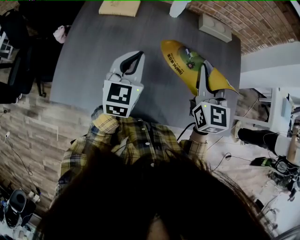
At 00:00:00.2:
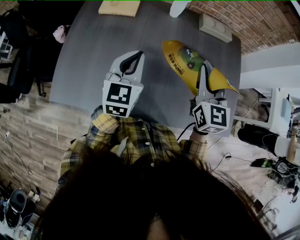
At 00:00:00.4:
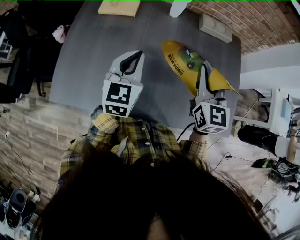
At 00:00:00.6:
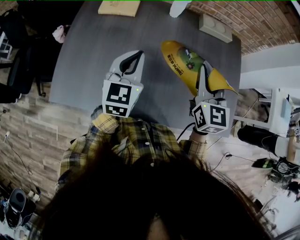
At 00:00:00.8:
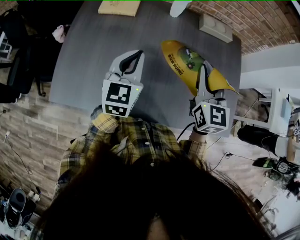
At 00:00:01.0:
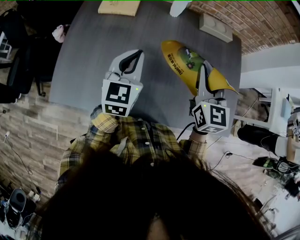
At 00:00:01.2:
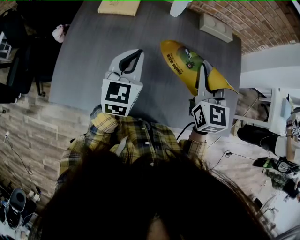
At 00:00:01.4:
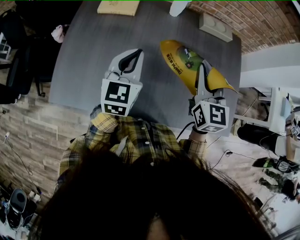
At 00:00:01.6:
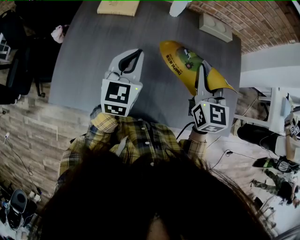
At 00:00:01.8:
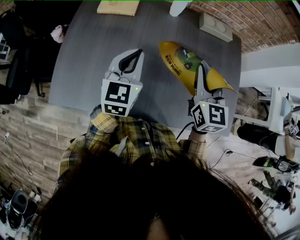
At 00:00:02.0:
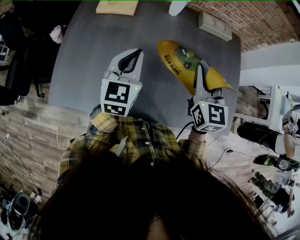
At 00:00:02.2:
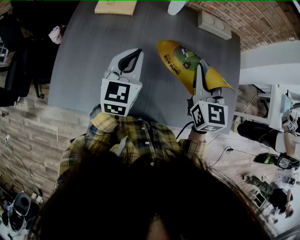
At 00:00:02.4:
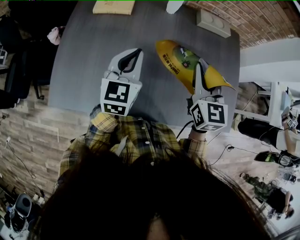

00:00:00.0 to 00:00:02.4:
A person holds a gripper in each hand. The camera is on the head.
00:00:00.0 to 00:00:01.2: Both grippers stay put.
00:00:01.2 to 00:00:02.4: Both grippers stay put.

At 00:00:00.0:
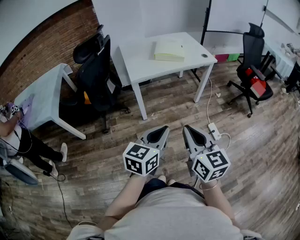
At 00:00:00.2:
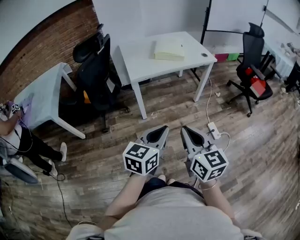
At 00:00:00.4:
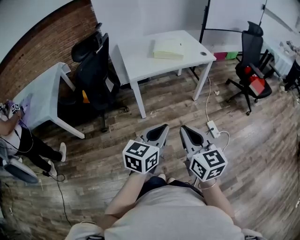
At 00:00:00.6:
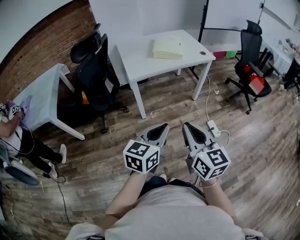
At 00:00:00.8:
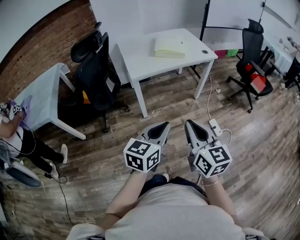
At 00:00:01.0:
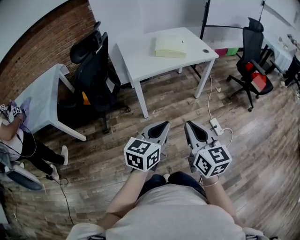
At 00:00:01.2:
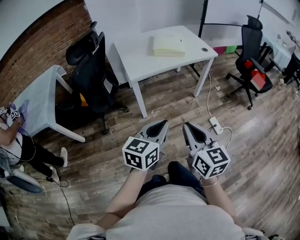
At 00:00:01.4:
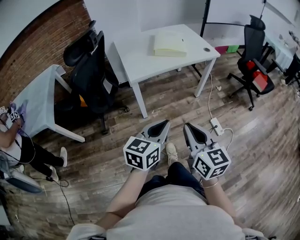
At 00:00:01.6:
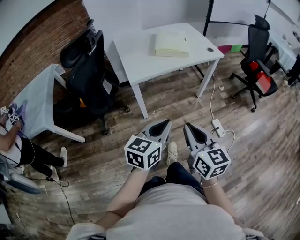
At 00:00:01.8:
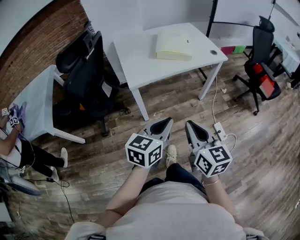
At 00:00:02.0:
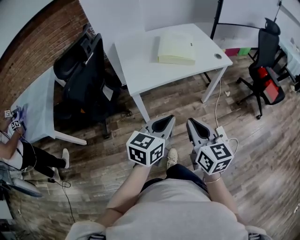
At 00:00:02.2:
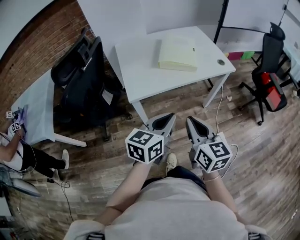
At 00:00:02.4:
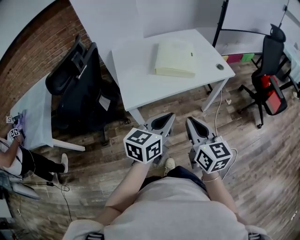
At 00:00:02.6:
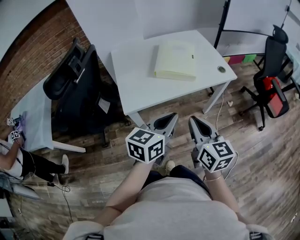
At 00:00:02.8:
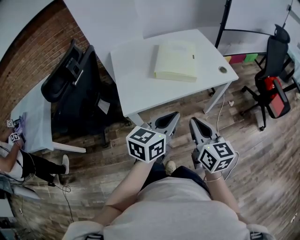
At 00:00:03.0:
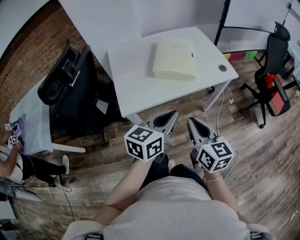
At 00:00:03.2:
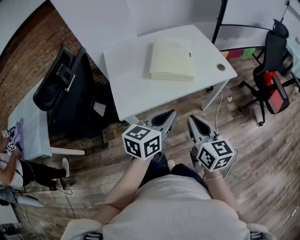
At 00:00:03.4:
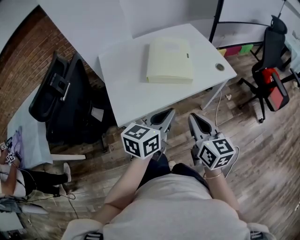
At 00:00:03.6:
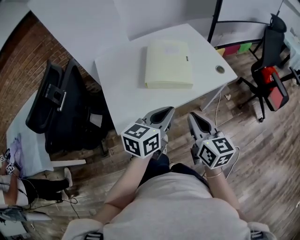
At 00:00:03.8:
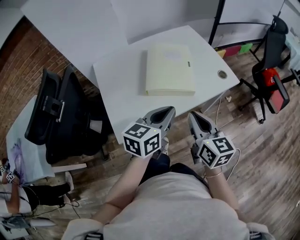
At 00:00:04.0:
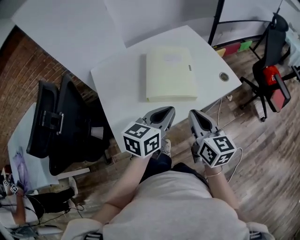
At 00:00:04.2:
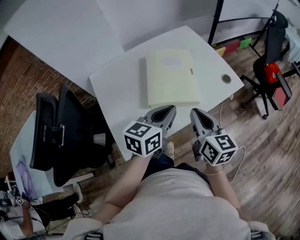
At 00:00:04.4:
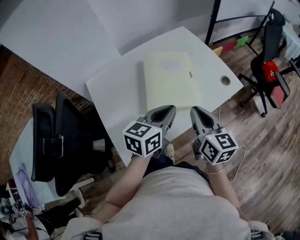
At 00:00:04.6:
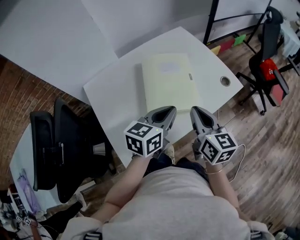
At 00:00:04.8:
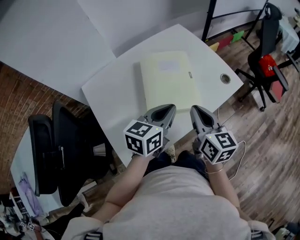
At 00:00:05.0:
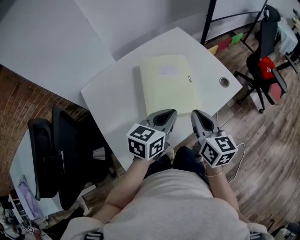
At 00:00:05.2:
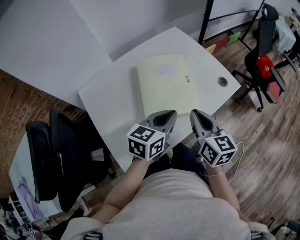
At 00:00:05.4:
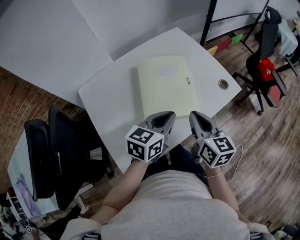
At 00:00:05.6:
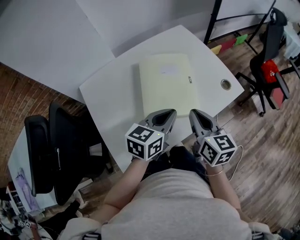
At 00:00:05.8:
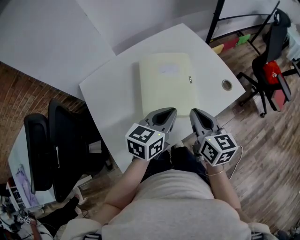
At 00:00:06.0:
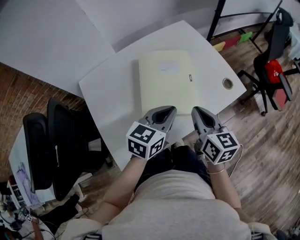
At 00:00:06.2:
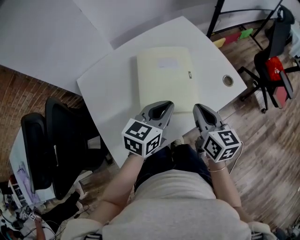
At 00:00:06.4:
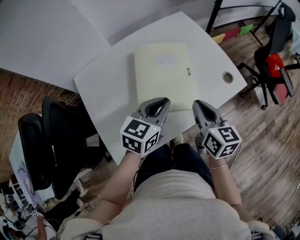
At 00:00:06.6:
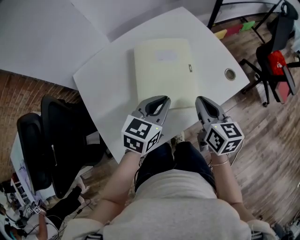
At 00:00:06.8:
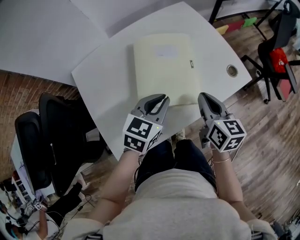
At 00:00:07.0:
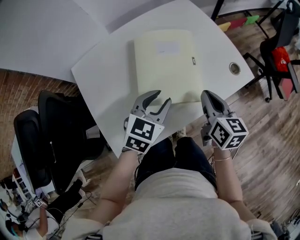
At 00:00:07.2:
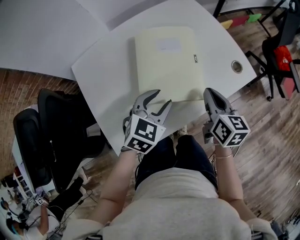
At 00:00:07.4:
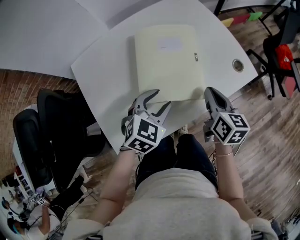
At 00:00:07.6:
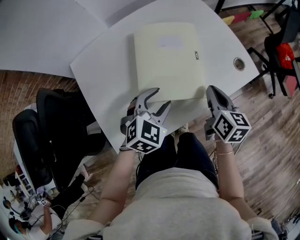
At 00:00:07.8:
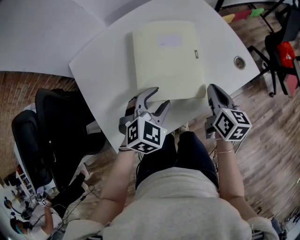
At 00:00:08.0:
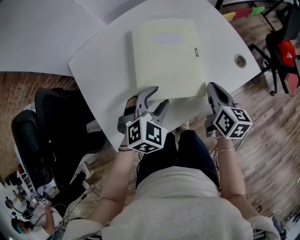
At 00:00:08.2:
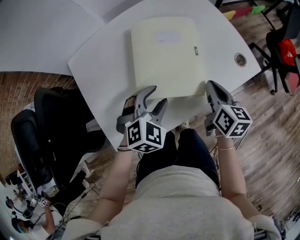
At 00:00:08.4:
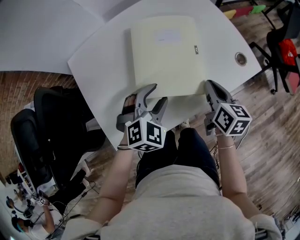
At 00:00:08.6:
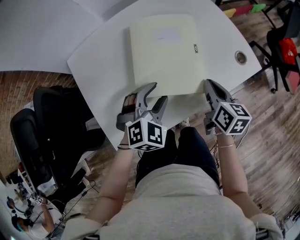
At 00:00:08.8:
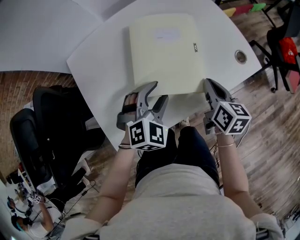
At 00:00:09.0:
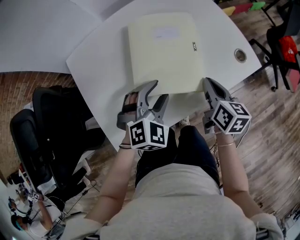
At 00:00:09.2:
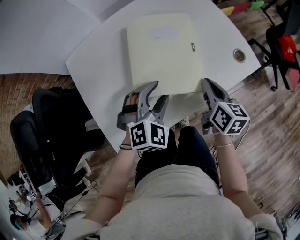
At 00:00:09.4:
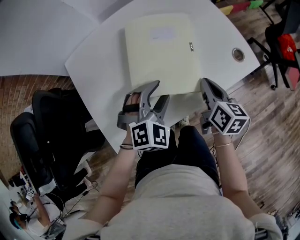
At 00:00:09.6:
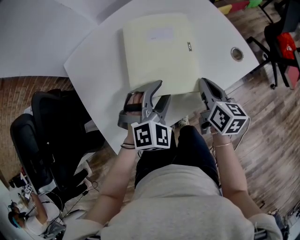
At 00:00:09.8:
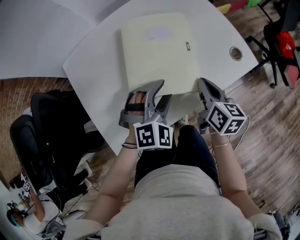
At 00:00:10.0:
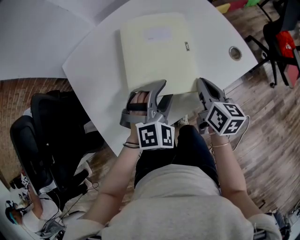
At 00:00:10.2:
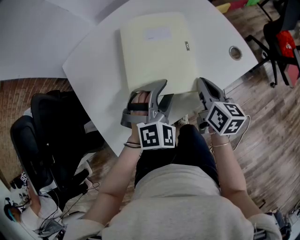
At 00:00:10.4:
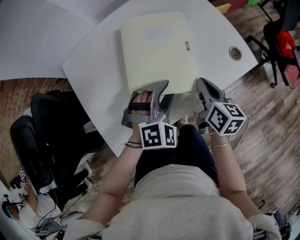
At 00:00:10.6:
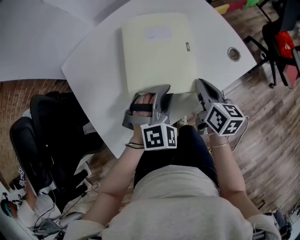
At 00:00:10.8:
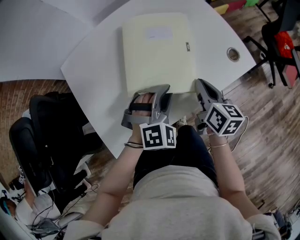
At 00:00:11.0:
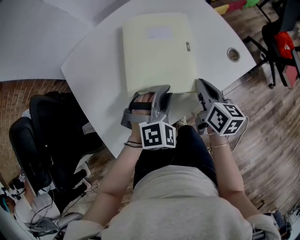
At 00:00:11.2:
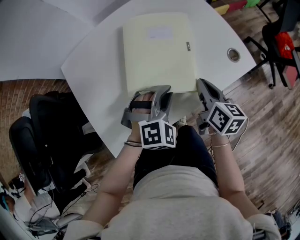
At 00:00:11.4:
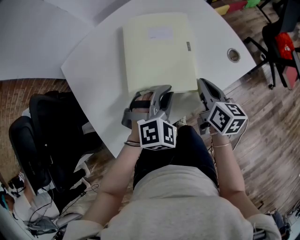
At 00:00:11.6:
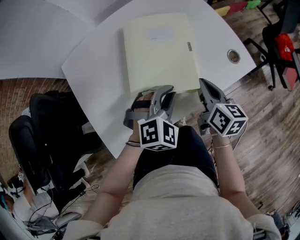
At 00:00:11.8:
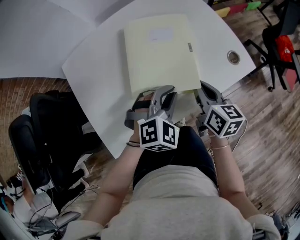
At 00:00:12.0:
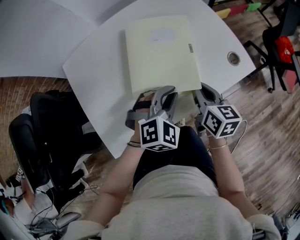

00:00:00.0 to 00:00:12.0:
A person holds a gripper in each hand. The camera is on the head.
00:00:00.0 to 00:00:01.6: The two grippers go some 10 cm forward.
00:00:01.6 to 00:00:03.0: Both grippers move forward, about 30 cm.
00:00:03.0 to 00:00:04.4: Both grippers travel together forward, some 25 cm.
00:00:04.4 to 00:00:06.0: The left gripper changes place by roughly 5 cm. Meanwhile the right gripper shifts some 5 cm forward.
00:00:06.0 to 00:00:07.6: The grippers both shift downward by approximately 10 cm. The left gripper turns by some 40 degrees, and opens its fingers.
00:00:07.6 to 00:00:09.0: There are only small adjustments of the grippers.
00:00:09.0 to 00:00:10.4: The grippers make only small movements.
00:00:10.4 to 00:00:12.0: The left gripper closes.

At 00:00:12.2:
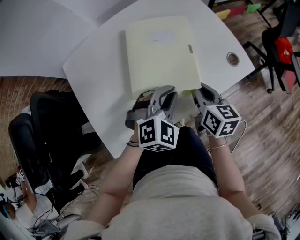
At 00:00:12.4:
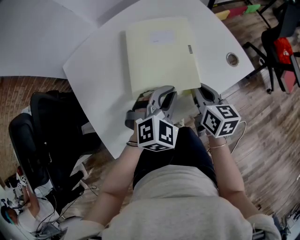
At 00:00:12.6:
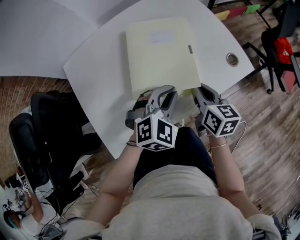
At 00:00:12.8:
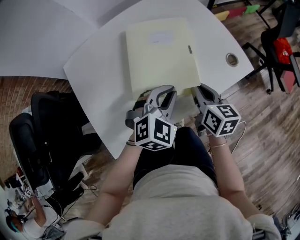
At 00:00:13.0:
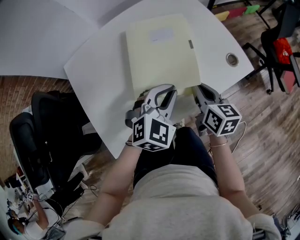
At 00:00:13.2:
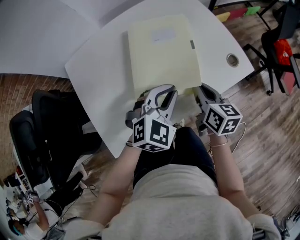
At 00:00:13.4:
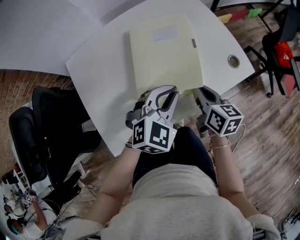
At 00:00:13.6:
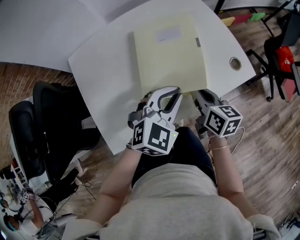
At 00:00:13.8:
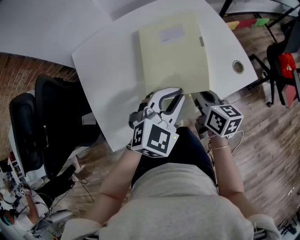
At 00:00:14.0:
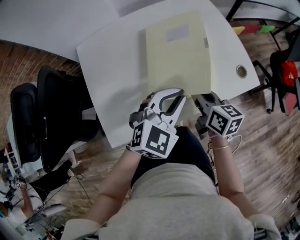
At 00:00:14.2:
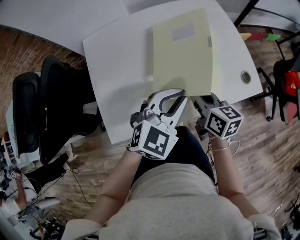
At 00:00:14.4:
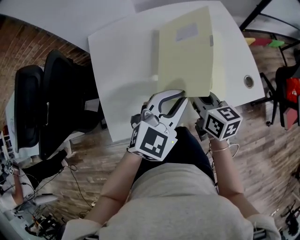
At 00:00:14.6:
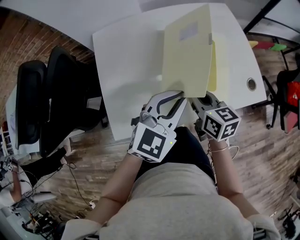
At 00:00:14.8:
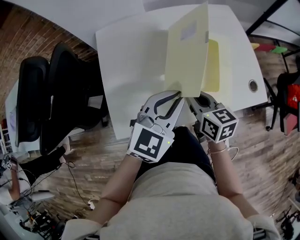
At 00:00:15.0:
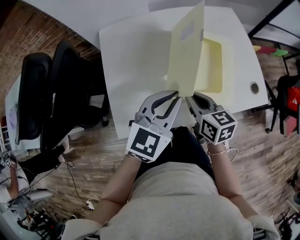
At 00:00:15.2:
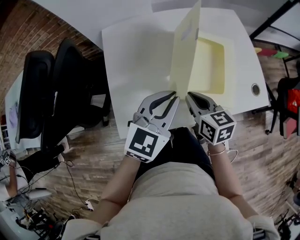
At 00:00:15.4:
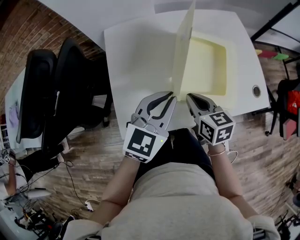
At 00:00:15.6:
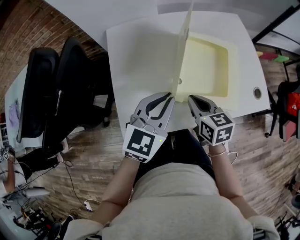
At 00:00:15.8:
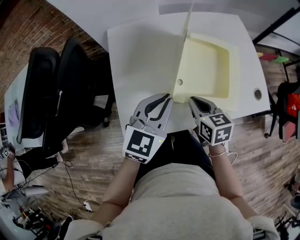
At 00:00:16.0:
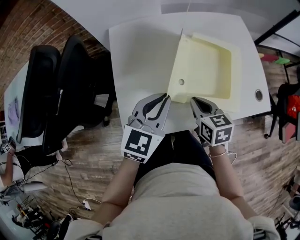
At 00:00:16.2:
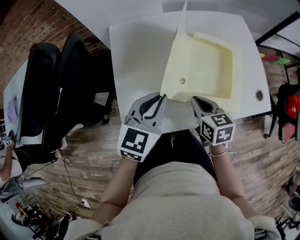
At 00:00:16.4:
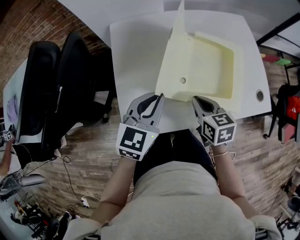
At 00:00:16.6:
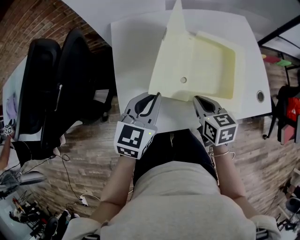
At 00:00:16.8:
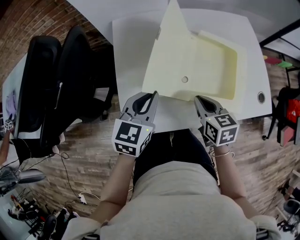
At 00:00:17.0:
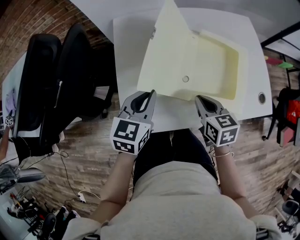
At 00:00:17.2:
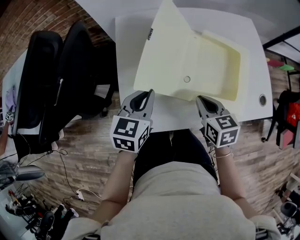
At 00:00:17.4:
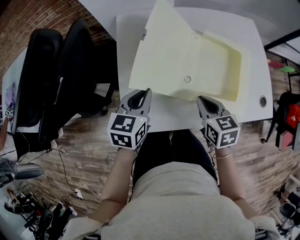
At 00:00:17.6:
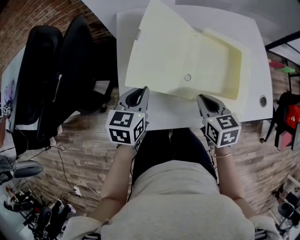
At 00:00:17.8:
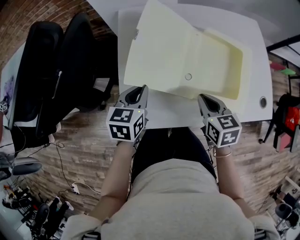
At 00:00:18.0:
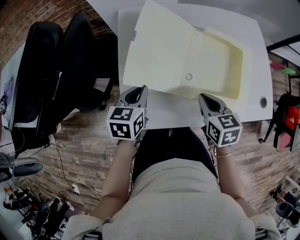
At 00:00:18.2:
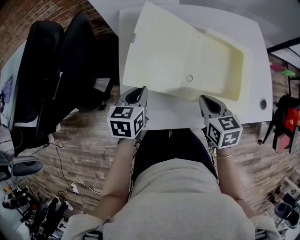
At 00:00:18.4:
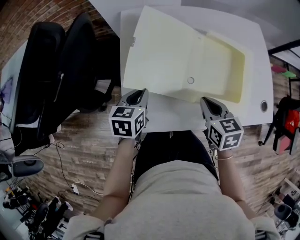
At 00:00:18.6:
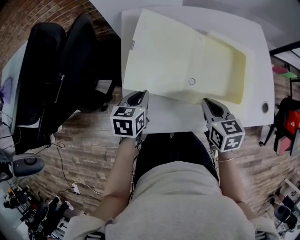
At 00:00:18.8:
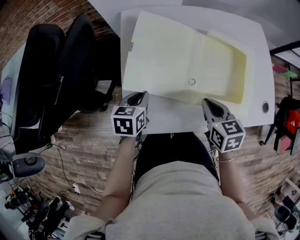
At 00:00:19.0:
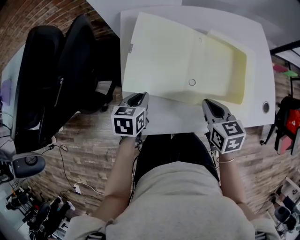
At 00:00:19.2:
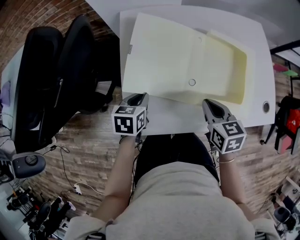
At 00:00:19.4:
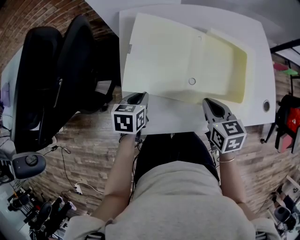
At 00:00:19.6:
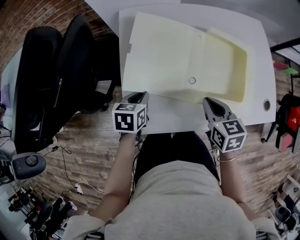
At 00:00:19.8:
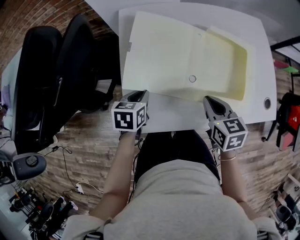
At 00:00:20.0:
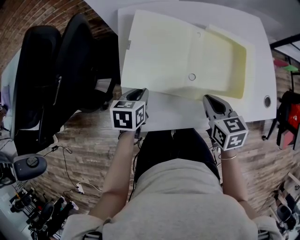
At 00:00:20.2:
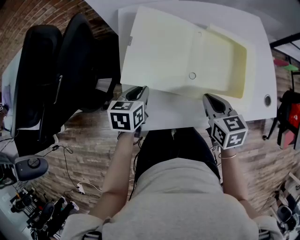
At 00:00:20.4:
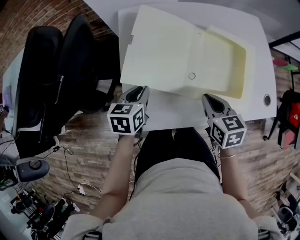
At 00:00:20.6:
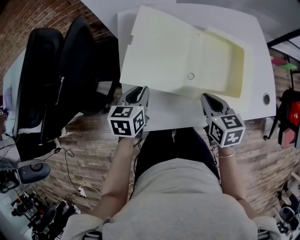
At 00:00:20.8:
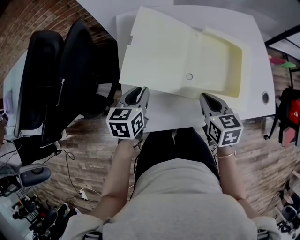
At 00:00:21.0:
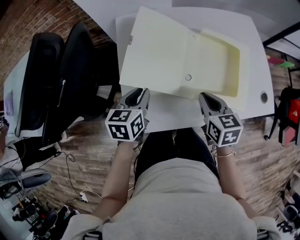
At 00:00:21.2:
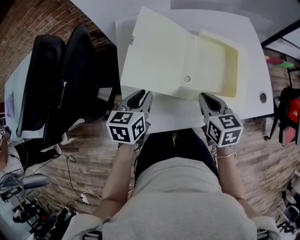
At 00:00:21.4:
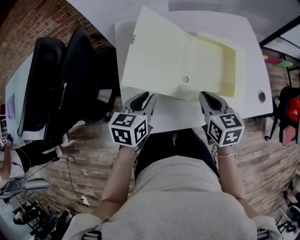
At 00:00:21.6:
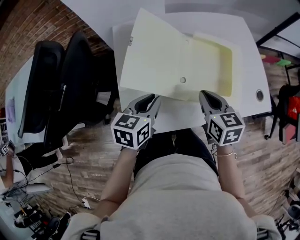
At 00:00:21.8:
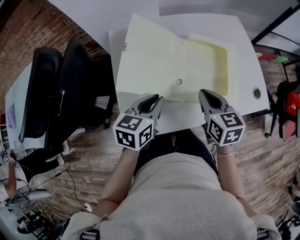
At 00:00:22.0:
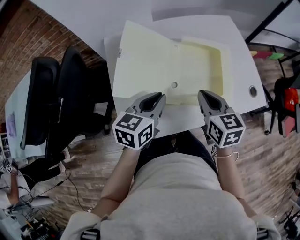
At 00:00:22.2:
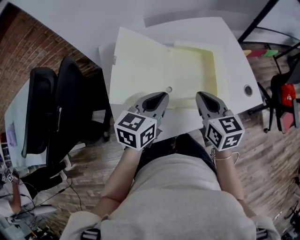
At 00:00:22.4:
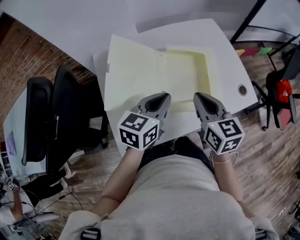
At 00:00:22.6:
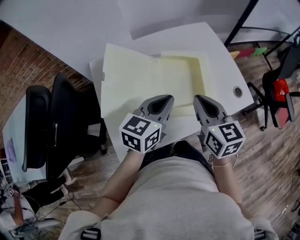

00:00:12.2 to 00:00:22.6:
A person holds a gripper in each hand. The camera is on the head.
00:00:12.2 to 00:00:13.6: The left gripper goes approximately 5 cm upward.
00:00:13.6 to 00:00:15.2: The grippers both shift to the left by some 15 cm. The right gripper changes its angle by roughly 30 degrees. The left gripper swivels roughly 30 degrees.
00:00:15.2 to 00:00:16.6: The left gripper travels to the left by some 10 cm.
00:00:16.6 to 00:00:18.2: The left gripper is displaced downward and to the left by approximately 10 cm, and rotates roughly 30 degrees.
00:00:18.2 to 00:00:19.6: The left gripper heads downward, covering roughly 5 cm.
00:00:19.6 to 00:00:21.2: The left gripper goes approximately 10 cm upward.
00:00:21.2 to 00:00:22.6: The left gripper moves to the right and upward, approximately 20 cm, and rotates approximately 30 degrees. The right gripper moves upward and to the right, about 15 cm, and rotates approximately 20 degrees.
